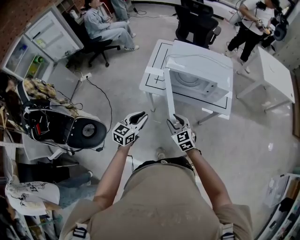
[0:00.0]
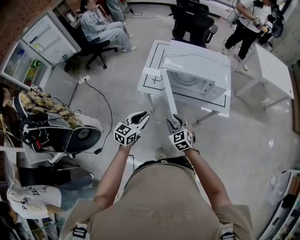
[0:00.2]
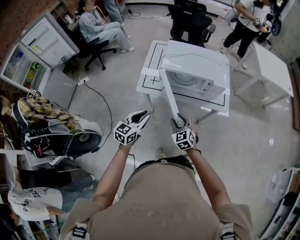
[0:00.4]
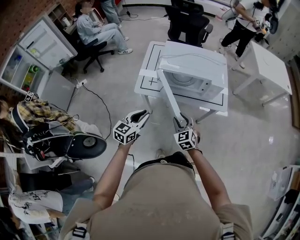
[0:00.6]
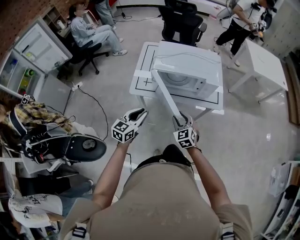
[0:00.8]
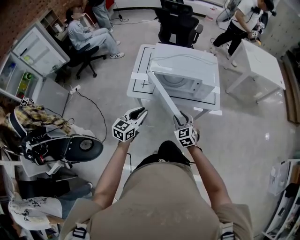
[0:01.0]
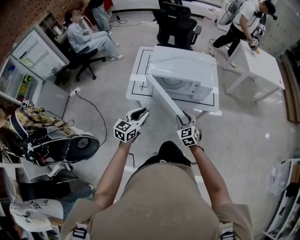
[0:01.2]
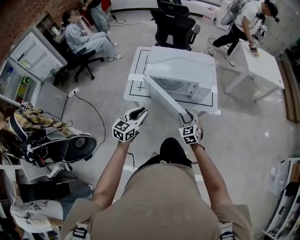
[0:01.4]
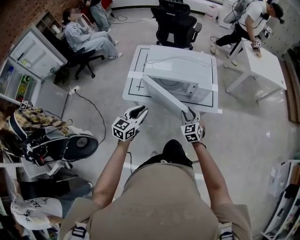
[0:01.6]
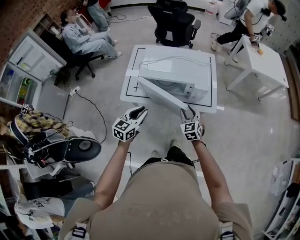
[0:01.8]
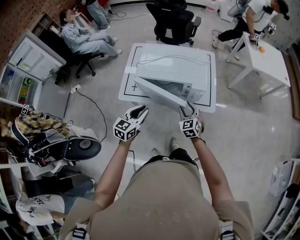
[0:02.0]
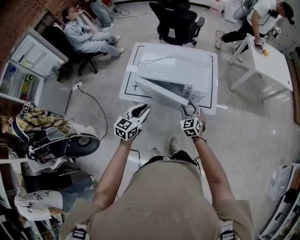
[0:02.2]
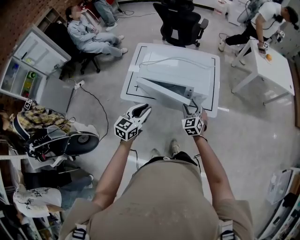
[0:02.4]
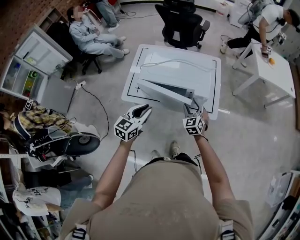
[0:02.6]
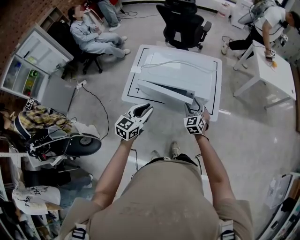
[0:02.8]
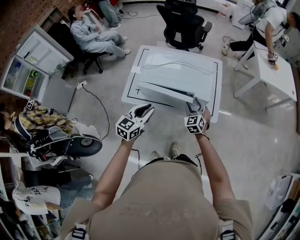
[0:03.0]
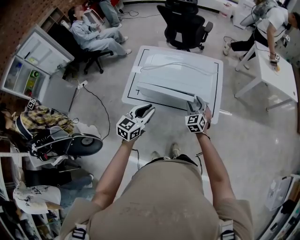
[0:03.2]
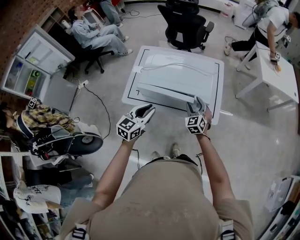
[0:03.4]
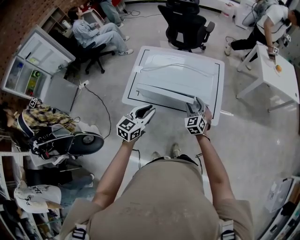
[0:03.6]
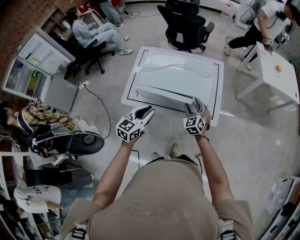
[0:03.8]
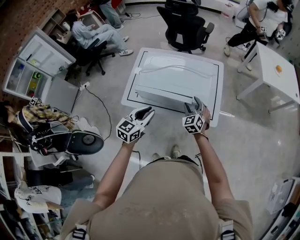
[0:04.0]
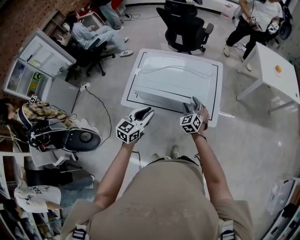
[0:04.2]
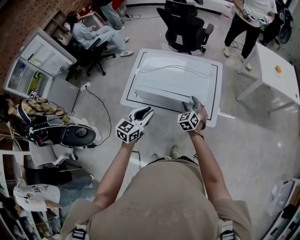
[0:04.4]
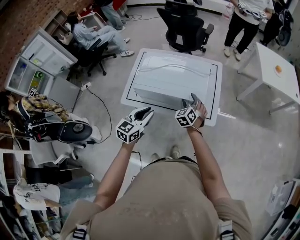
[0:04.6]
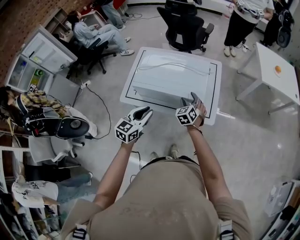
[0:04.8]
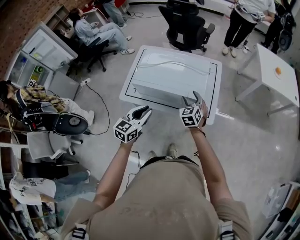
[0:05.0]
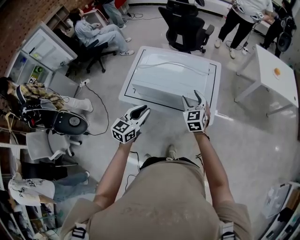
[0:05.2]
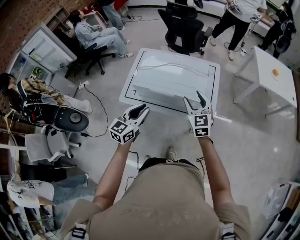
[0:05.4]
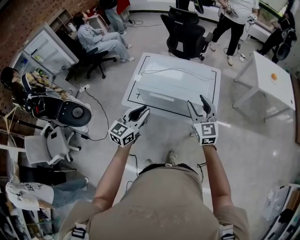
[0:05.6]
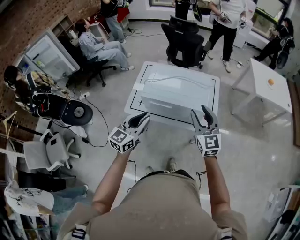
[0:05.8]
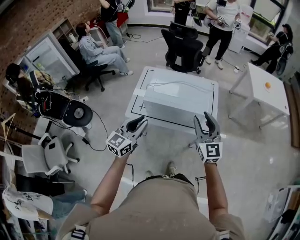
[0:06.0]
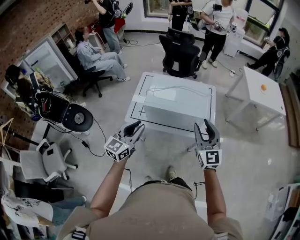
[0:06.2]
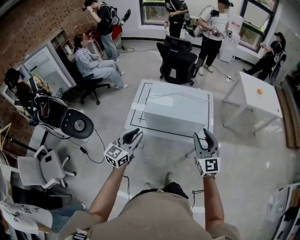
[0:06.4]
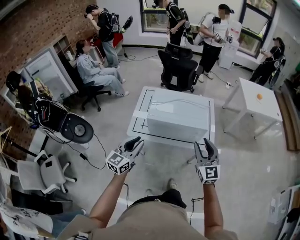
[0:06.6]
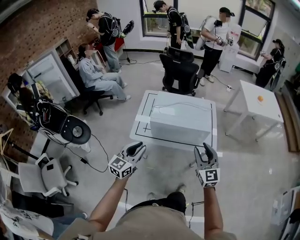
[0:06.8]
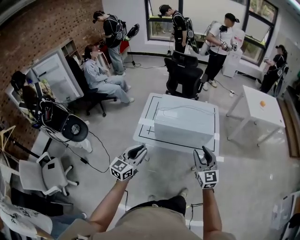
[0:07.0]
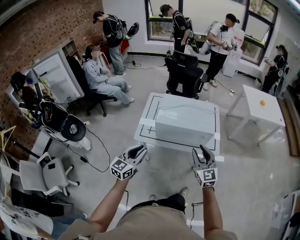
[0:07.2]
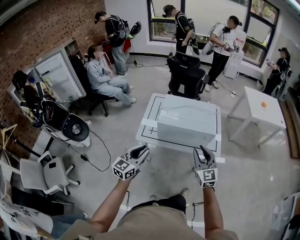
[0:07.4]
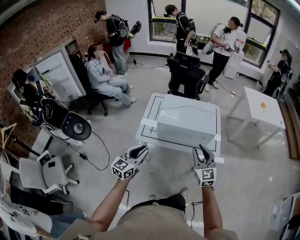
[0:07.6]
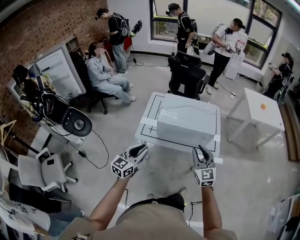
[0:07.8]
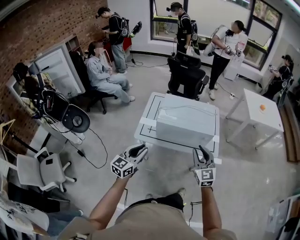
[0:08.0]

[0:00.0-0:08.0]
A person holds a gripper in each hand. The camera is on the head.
0.0 to 1.6 s: The left gripper goes about 15 cm forward and to the right; the right gripper shifts roughly 20 cm to the right and forward, and swivels some 20 degrees.
1.6 to 3.2 s: The left gripper heads forward and to the right, covering approximately 10 cm, while the right gripper heads forward, covering about 15 cm.
3.2 to 4.8 s: The grippers make only small movements.
4.8 to 6.4 s: The right gripper is displaced upward and backward by roughly 30 cm, and tips its fingers upward by roughly 40 degrees. Meanwhile the left gripper shifts roughly 20 cm to the left, upward and backward.
6.4 to 8.0 s: The left gripper is displaced backward by about 5 cm; the right gripper shifts roughly 10 cm to the left and downward.

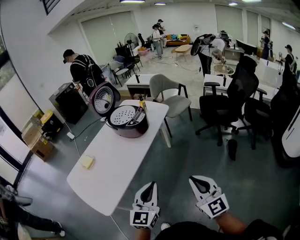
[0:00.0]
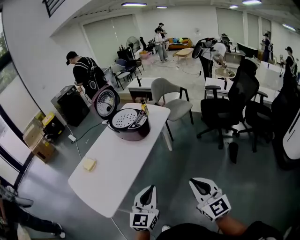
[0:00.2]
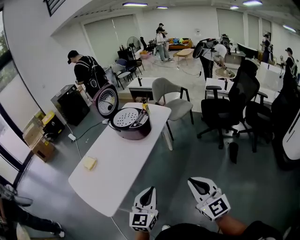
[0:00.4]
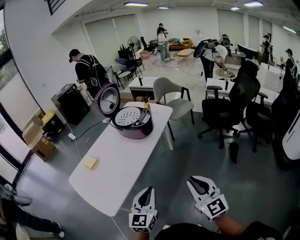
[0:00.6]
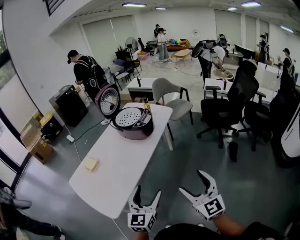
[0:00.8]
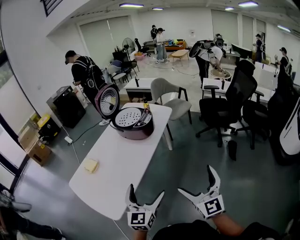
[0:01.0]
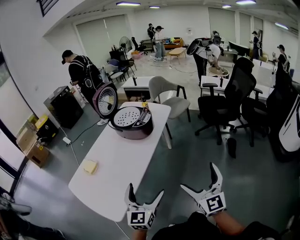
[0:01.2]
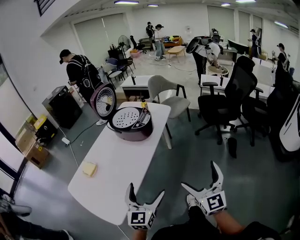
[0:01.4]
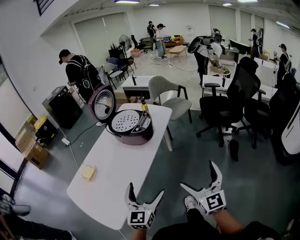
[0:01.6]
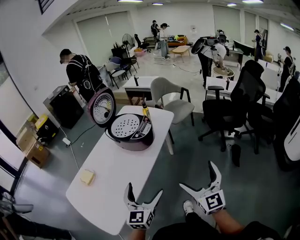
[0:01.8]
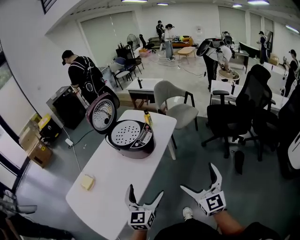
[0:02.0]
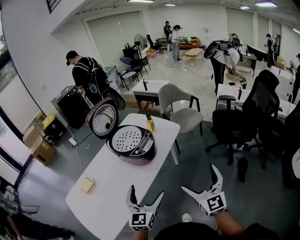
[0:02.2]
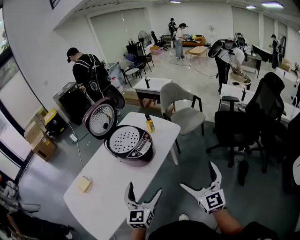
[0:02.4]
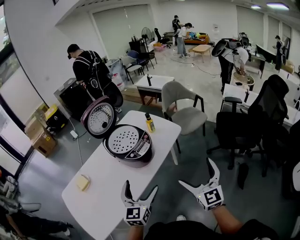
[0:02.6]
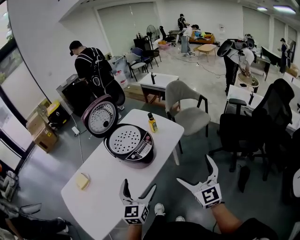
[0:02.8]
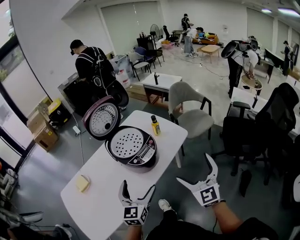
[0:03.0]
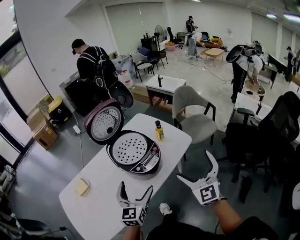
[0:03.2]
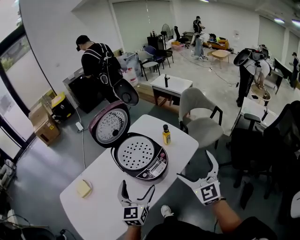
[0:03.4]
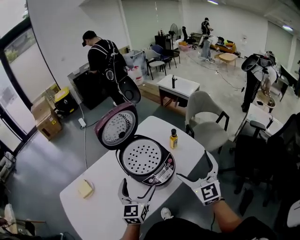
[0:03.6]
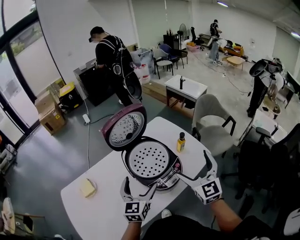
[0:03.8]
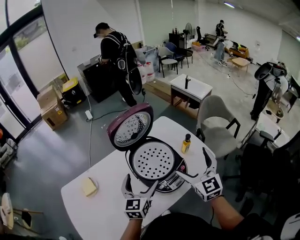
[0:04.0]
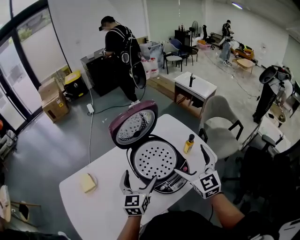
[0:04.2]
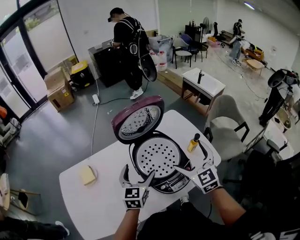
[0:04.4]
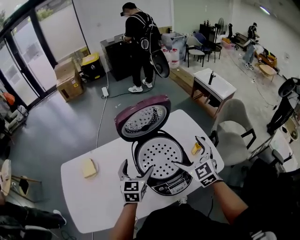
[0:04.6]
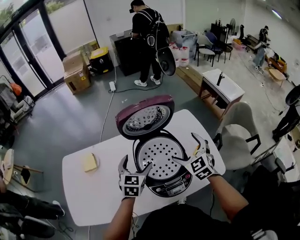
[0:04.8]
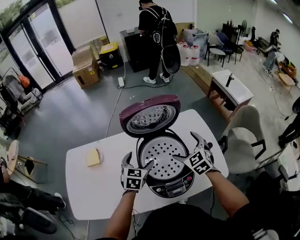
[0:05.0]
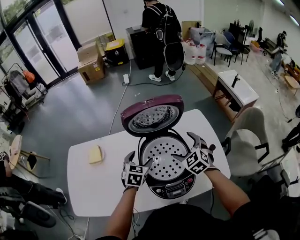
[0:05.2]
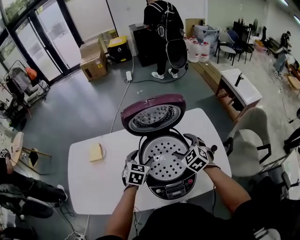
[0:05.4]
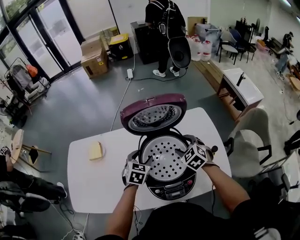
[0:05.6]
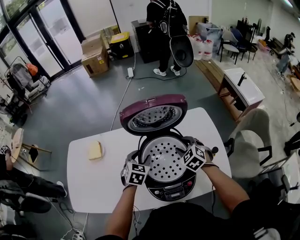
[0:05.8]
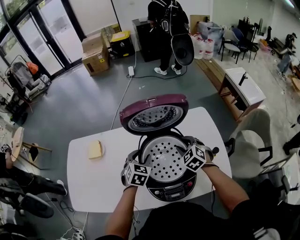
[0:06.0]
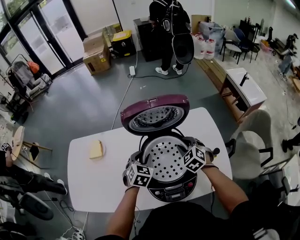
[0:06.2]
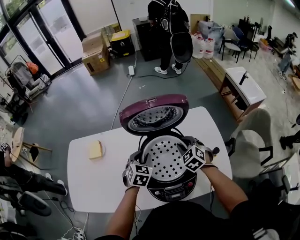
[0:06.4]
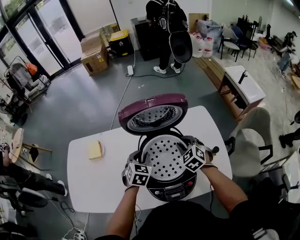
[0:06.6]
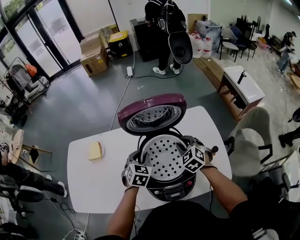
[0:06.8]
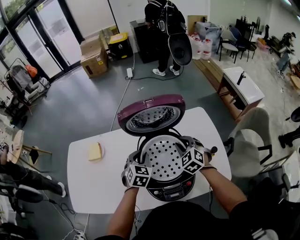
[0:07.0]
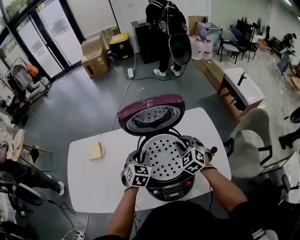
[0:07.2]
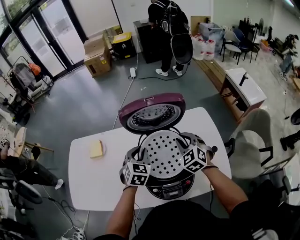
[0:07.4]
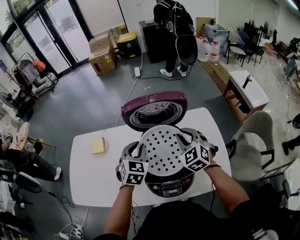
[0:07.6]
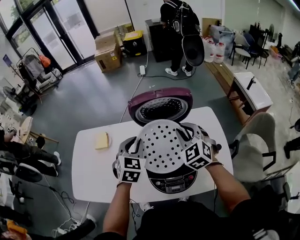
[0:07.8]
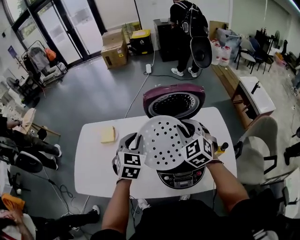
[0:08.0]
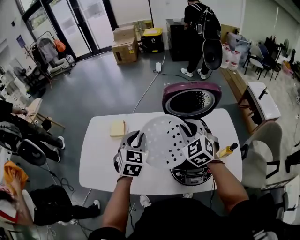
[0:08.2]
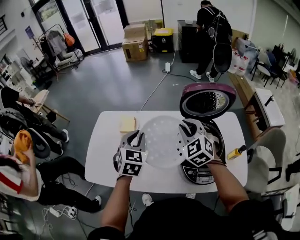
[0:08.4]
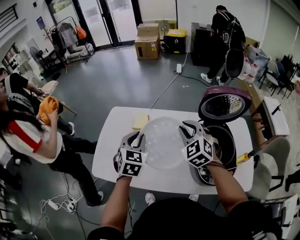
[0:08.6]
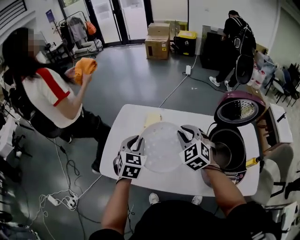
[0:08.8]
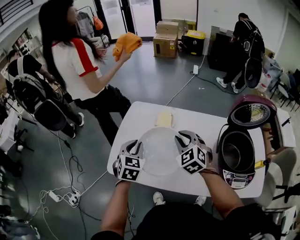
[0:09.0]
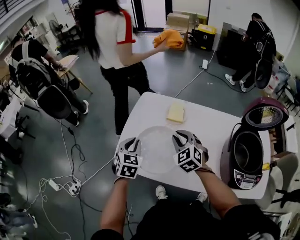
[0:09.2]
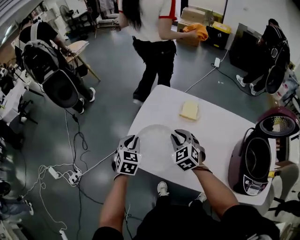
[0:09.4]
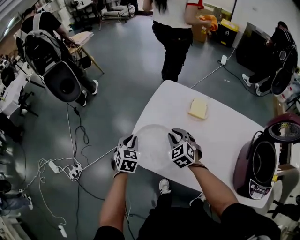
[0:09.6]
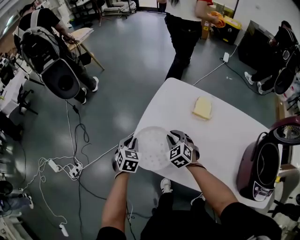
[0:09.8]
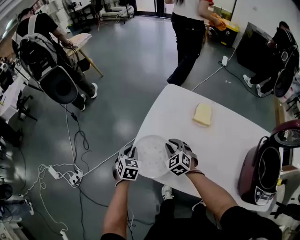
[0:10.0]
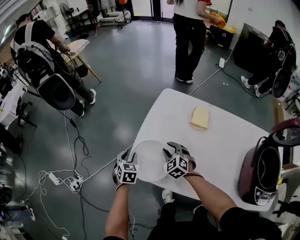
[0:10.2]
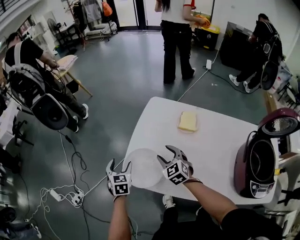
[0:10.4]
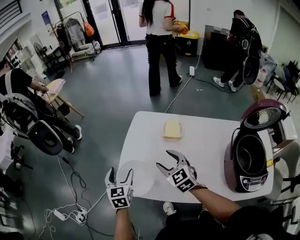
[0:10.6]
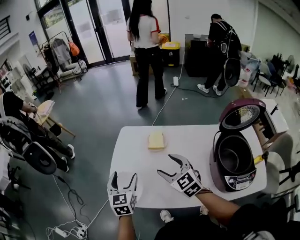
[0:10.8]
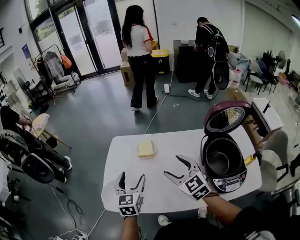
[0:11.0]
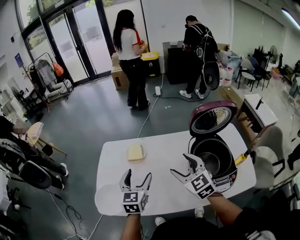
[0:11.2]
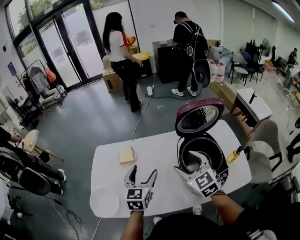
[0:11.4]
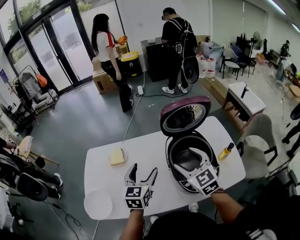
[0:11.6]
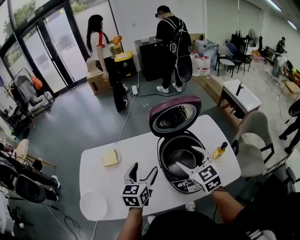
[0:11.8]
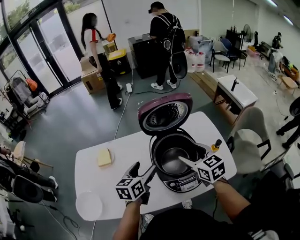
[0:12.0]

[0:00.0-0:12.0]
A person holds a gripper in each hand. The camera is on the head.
0.0 to 1.6 s: The left gripper goes approximately 15 cm to the left and forward, and opens its fingers. The right gripper heads forward, covering some 10 cm, and opens.
1.6 to 3.0 s: Both grippers move forward, roughly 30 cm. The right gripper swivels some 20 degrees.
3.0 to 4.4 s: The grippers both shift forward and to the left by roughly 30 cm. The left gripper changes its angle by roughly 20 degrees; the right gripper swivels about 30 degrees.
4.4 to 6.0 s: The left gripper heads downward and forward, covering roughly 10 cm, swivels roughly 30 degrees, and closes, while the right gripper travels downward and forward by roughly 20 cm, swivels about 40 degrees, and closes up.
6.0 to 7.6 s: Both grippers move upward, roughly 10 cm.
7.6 to 9.0 s: The pair of grippers is taken to the left, some 50 cm. The left gripper changes its angle by roughly 20 degrees.
9.0 to 10.4 s: The right gripper heads to the left, downward and forward, covering roughly 30 cm. The left gripper shifts some 30 cm to the left and downward, rotates some 30 degrees, and opens up.
10.4 to 12.0 s: The pair of grippers is taken about 60 cm. The left gripper swivels approximately 60 degrees. Meanwhile the right gripper rotates about 50 degrees.

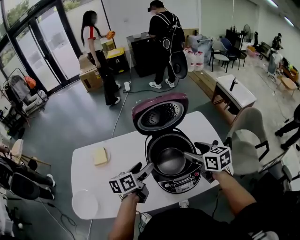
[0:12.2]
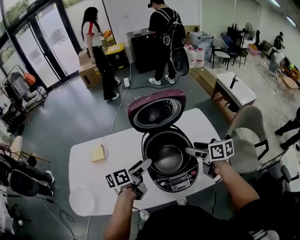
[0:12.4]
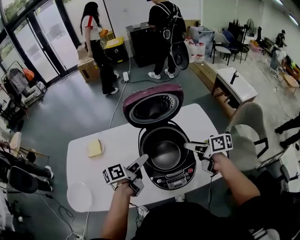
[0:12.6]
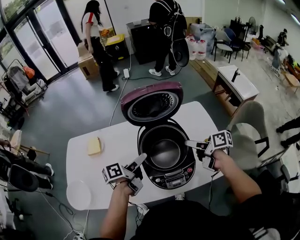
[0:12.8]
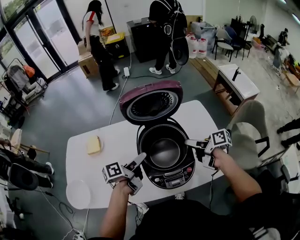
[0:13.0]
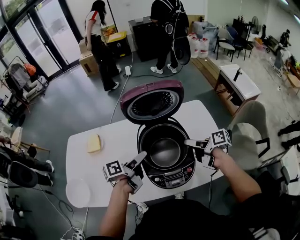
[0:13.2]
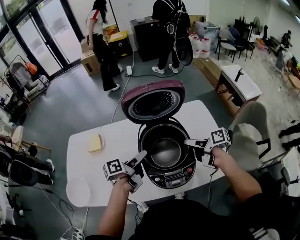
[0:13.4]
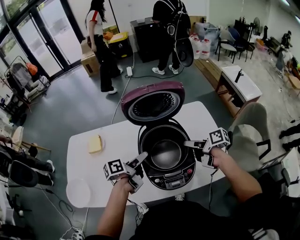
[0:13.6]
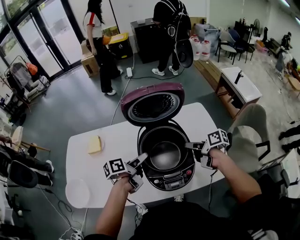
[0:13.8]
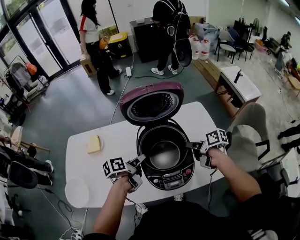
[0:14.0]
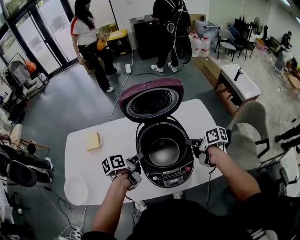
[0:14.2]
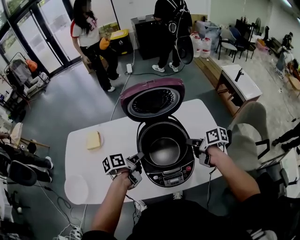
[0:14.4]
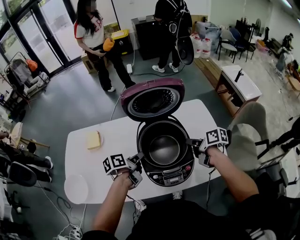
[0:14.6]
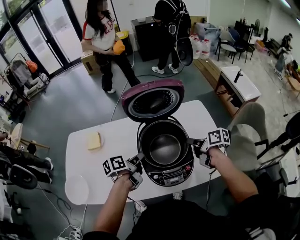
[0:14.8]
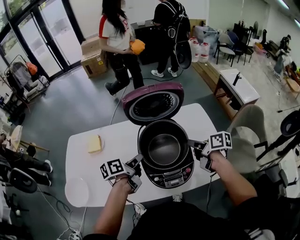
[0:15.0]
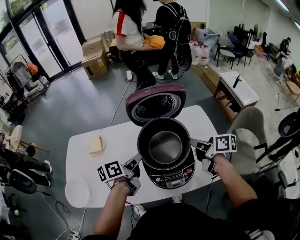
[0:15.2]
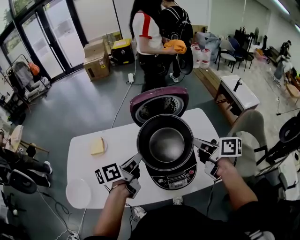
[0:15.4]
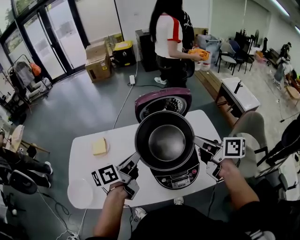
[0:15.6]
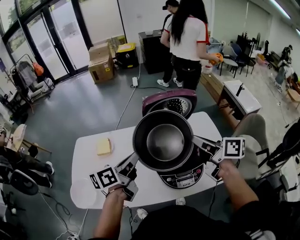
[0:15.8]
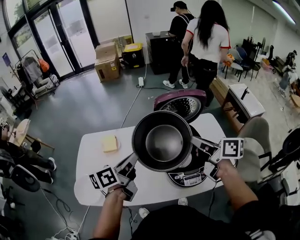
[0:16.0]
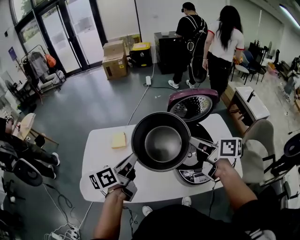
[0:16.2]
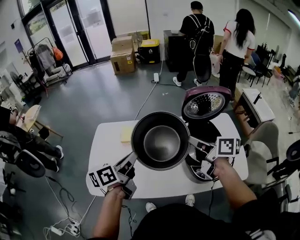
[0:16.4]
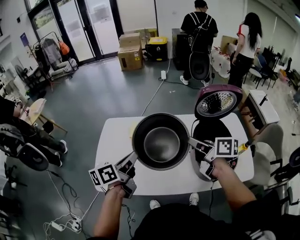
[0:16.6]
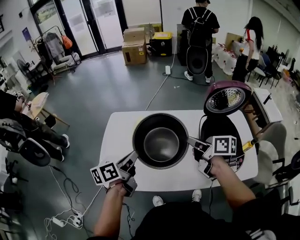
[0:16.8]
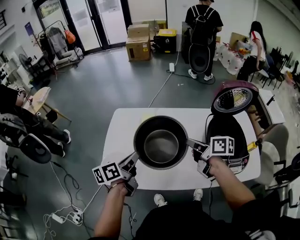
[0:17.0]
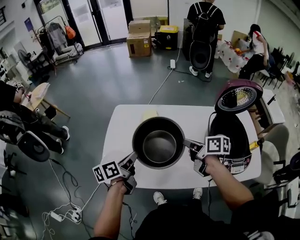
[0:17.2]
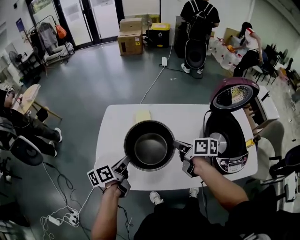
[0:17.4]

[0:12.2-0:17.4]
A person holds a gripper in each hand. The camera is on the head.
12.2 to 14.0 s: The grippers both shift downward by approximately 10 cm. The right gripper changes its angle by approximately 40 degrees, and closes up. Meanwhile the left gripper swivels about 30 degrees, and closes its fingers.
14.0 to 15.6 s: Both grippers travel together upward, roughly 20 cm. The right gripper turns by approximately 30 degrees. The left gripper turns by some 20 degrees.
15.6 to 17.4 s: The left gripper is displaced to the left by approximately 40 cm, and rotates about 20 degrees, while the right gripper moves to the left and downward, roughly 40 cm, and turns by approximately 20 degrees.
